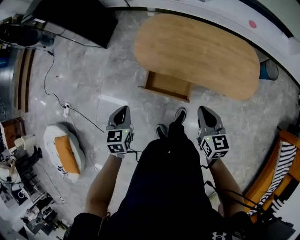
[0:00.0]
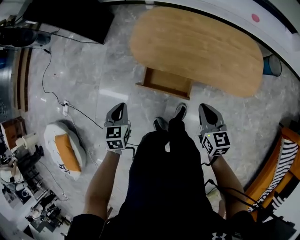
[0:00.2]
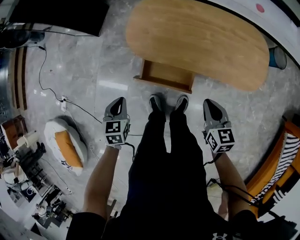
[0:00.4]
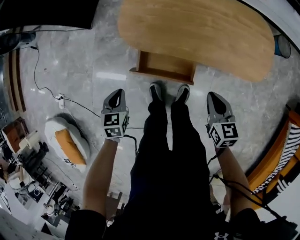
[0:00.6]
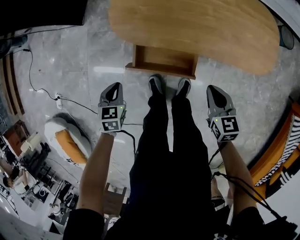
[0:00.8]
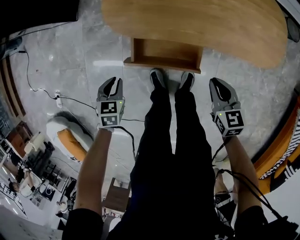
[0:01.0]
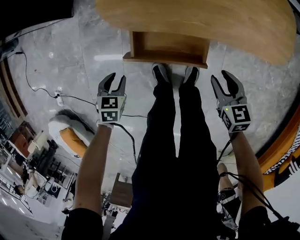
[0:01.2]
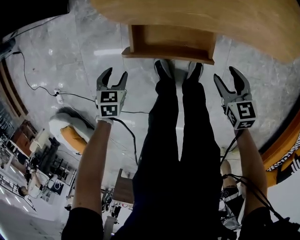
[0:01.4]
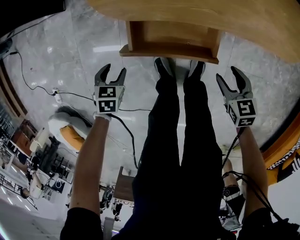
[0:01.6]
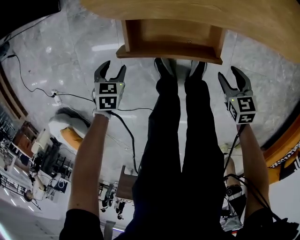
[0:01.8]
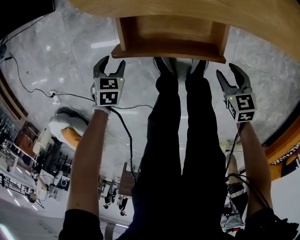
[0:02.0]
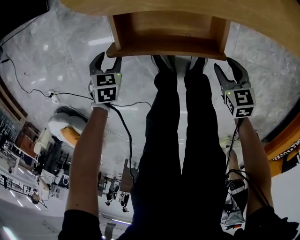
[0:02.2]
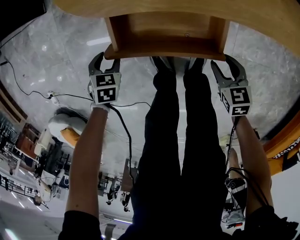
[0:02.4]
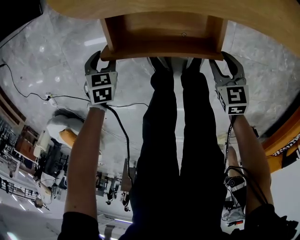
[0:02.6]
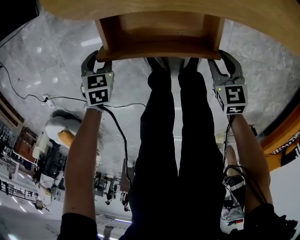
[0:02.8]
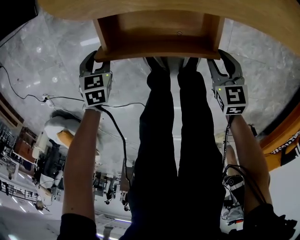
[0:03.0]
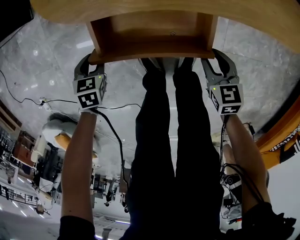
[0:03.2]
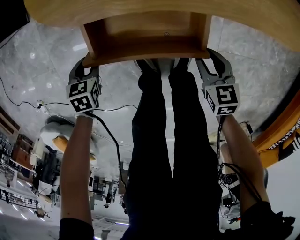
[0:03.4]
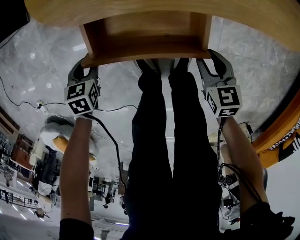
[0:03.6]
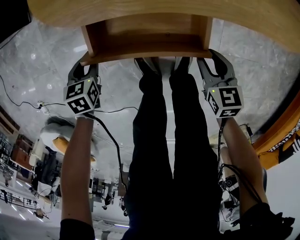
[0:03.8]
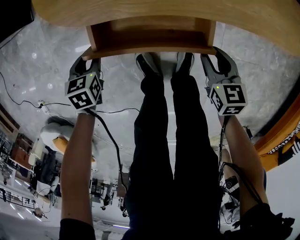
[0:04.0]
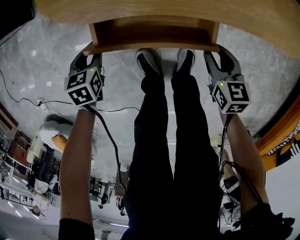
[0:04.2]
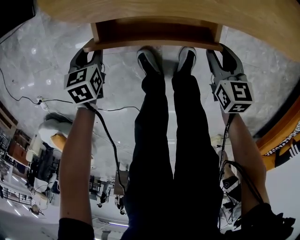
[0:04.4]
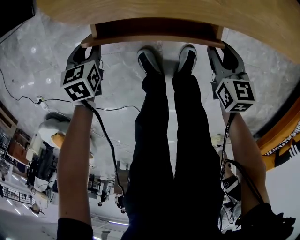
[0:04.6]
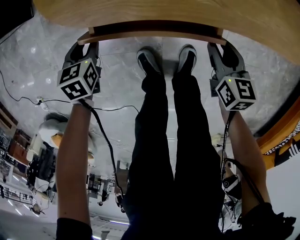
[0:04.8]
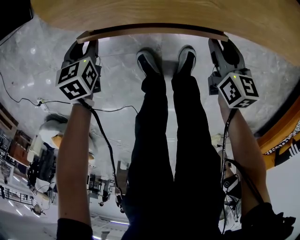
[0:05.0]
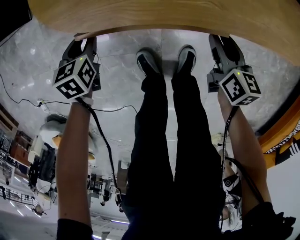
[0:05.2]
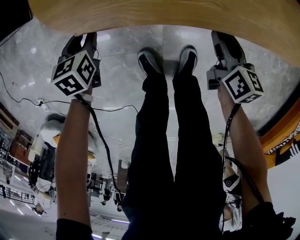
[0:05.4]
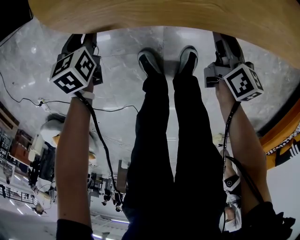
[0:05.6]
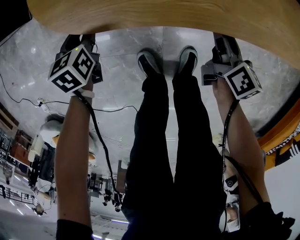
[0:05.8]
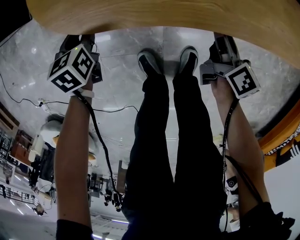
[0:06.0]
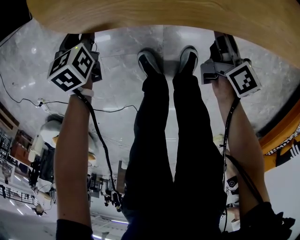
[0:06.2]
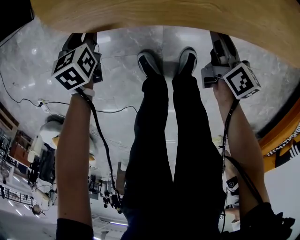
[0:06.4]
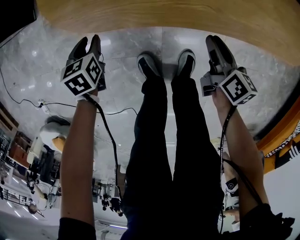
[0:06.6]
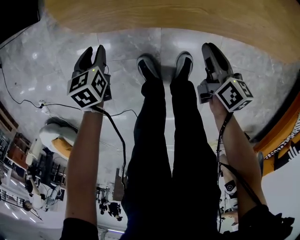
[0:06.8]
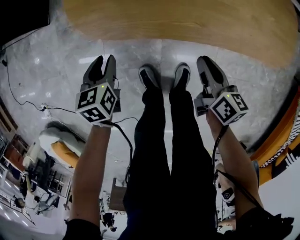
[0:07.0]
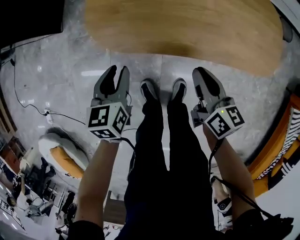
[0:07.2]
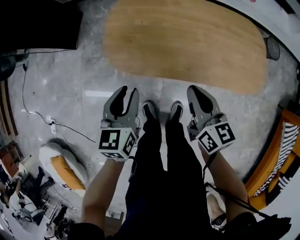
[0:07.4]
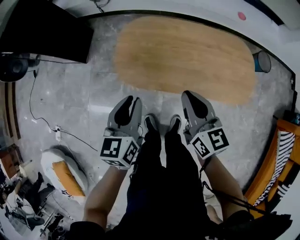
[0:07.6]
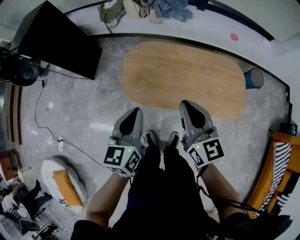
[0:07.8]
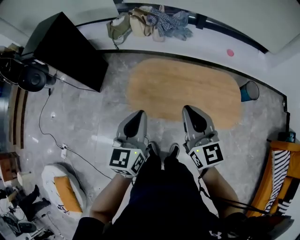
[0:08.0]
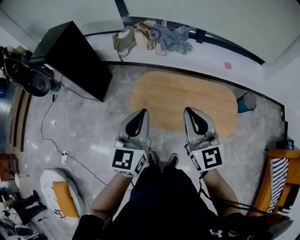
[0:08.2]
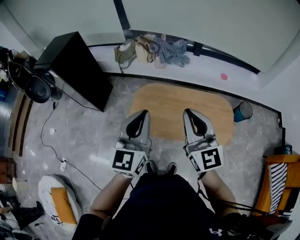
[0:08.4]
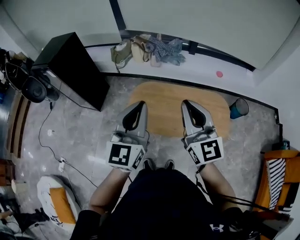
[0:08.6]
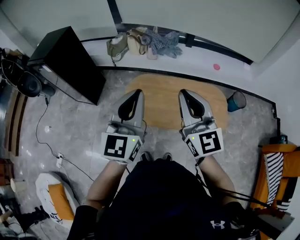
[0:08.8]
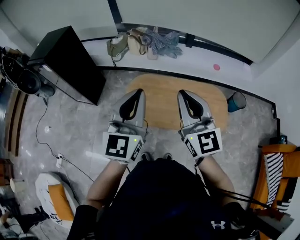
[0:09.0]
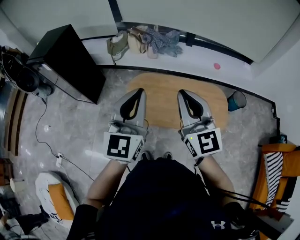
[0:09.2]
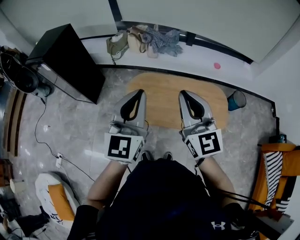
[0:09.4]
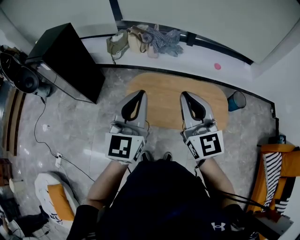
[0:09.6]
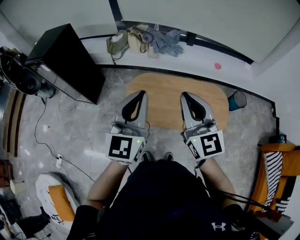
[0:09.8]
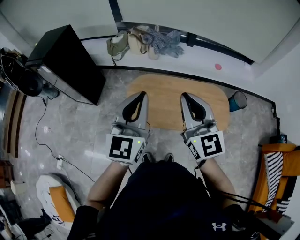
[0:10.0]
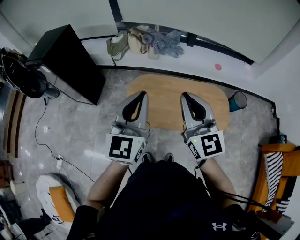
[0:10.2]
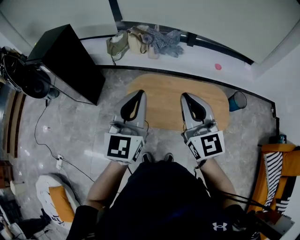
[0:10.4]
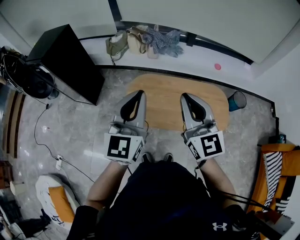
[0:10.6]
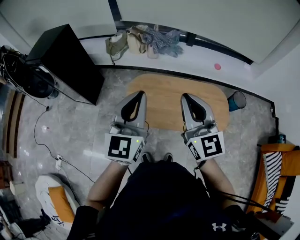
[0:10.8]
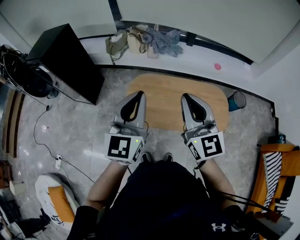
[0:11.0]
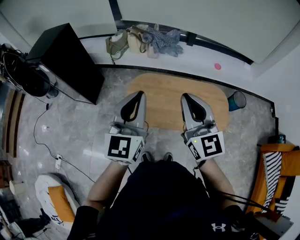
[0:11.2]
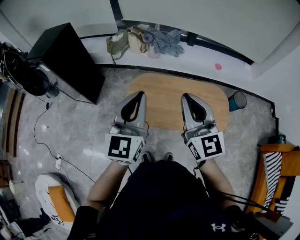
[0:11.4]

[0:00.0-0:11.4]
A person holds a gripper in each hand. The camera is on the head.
0:00.0 to 0:01.4: The grippers both shift downward by about 35 cm. The left gripper rotates some 40 degrees, and opens its fingers; the right gripper swivels approximately 20 degrees, and opens.
0:01.4 to 0:02.8: The grippers both shift downward by about 15 cm. The right gripper closes.
0:02.8 to 0:04.2: The right gripper shifts by about 5 cm.
0:04.2 to 0:05.6: The grippers both shift forward by approximately 10 cm. The right gripper changes its angle by approximately 40 degrees.
0:05.6 to 0:07.2: Both grippers travel together upward, roughly 25 cm. The right gripper closes.
0:07.2 to 0:08.6: Both grippers travel together upward, about 60 cm. The right gripper rotates around the line of its fingers by some 50 degrees, counterclockwise from behind; the left gripper points its fingers approximately 50 degrees further upward, and closes up.
0:08.6 to 0:11.4: The grippers make only small movements.

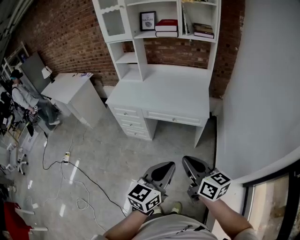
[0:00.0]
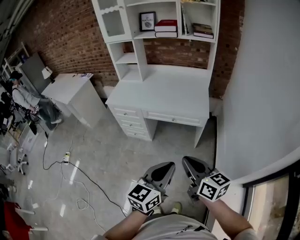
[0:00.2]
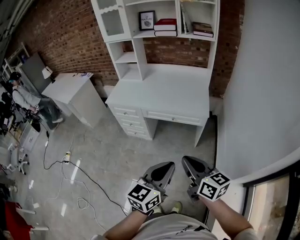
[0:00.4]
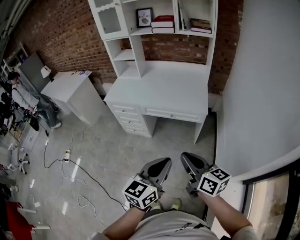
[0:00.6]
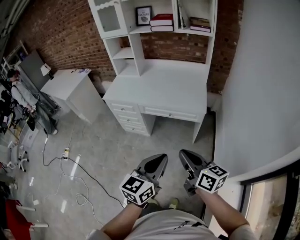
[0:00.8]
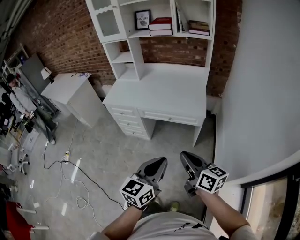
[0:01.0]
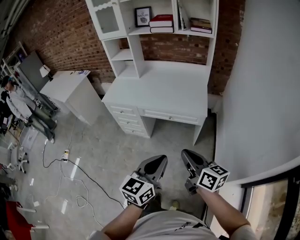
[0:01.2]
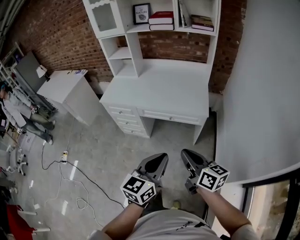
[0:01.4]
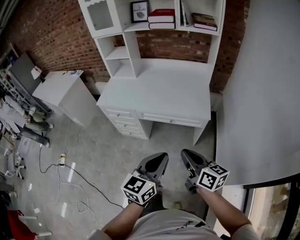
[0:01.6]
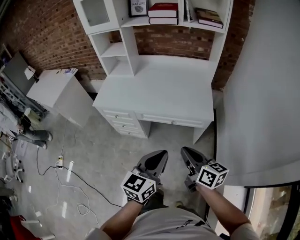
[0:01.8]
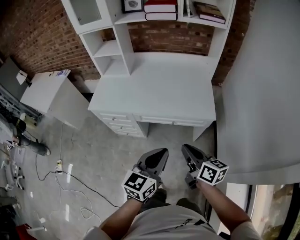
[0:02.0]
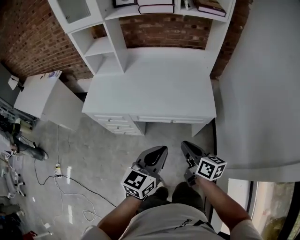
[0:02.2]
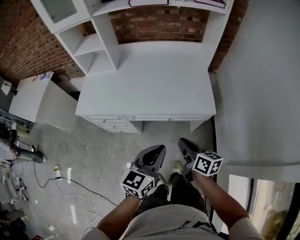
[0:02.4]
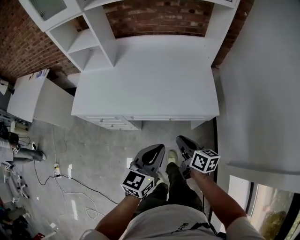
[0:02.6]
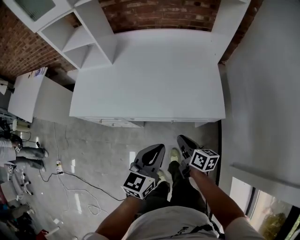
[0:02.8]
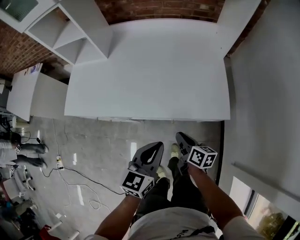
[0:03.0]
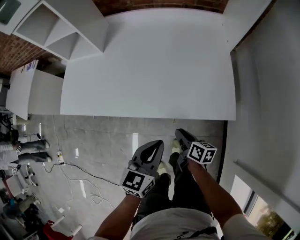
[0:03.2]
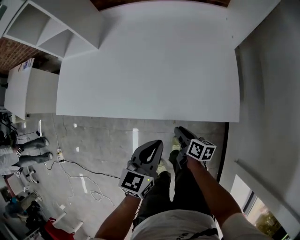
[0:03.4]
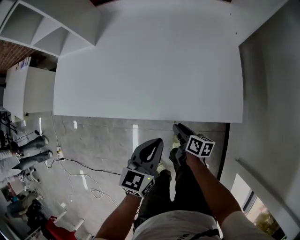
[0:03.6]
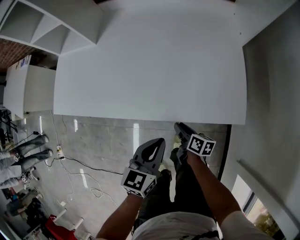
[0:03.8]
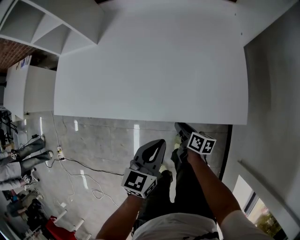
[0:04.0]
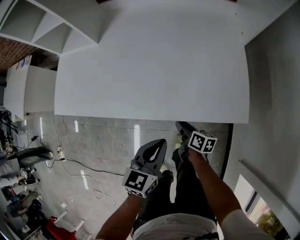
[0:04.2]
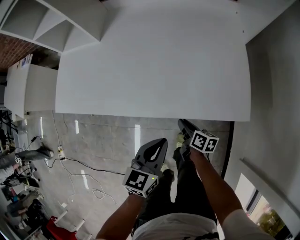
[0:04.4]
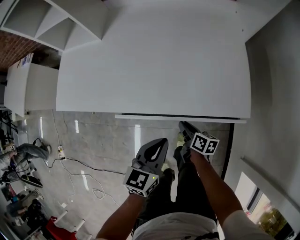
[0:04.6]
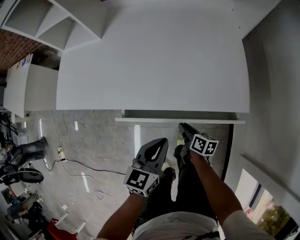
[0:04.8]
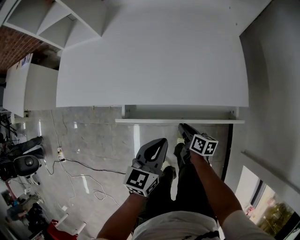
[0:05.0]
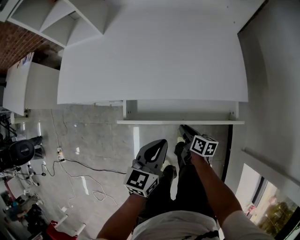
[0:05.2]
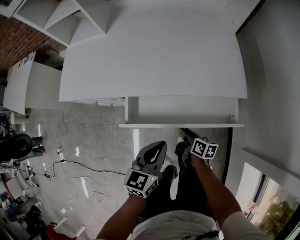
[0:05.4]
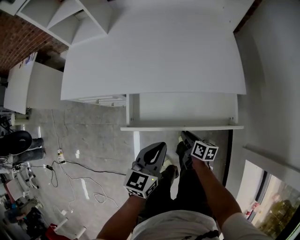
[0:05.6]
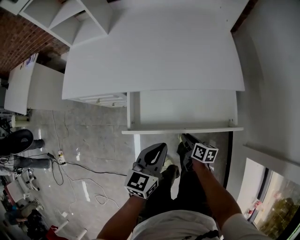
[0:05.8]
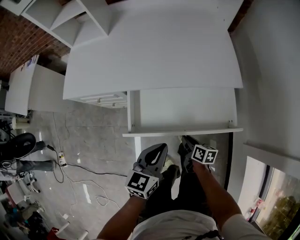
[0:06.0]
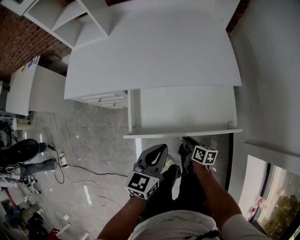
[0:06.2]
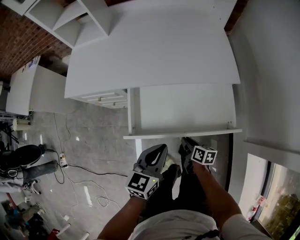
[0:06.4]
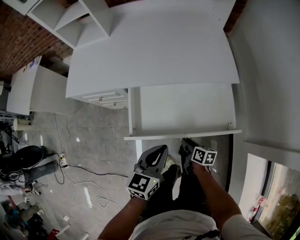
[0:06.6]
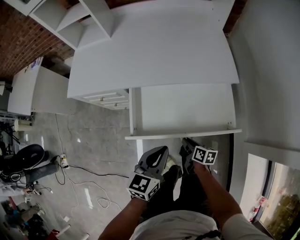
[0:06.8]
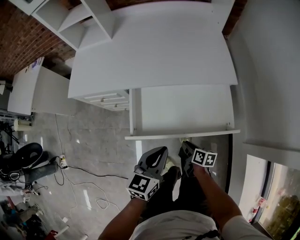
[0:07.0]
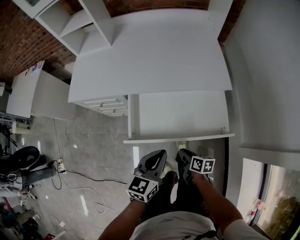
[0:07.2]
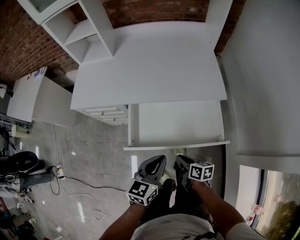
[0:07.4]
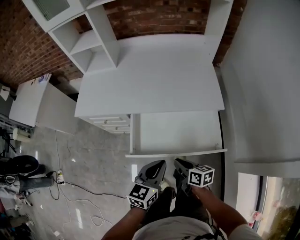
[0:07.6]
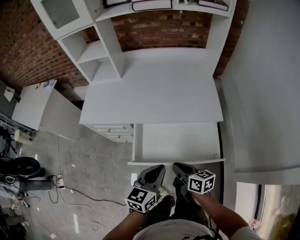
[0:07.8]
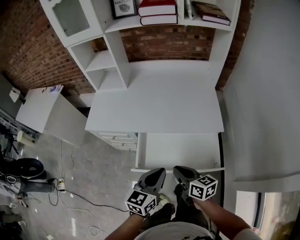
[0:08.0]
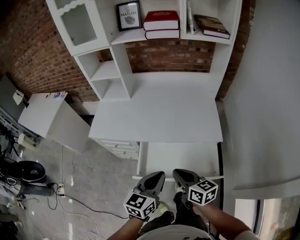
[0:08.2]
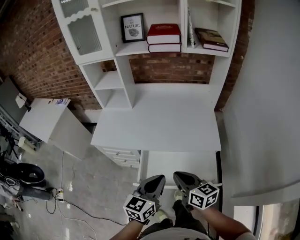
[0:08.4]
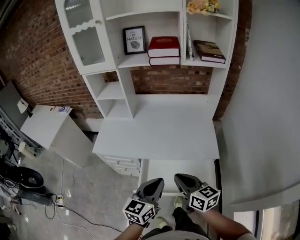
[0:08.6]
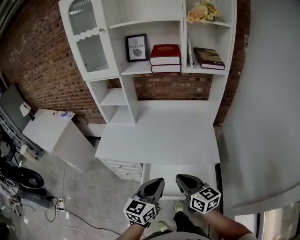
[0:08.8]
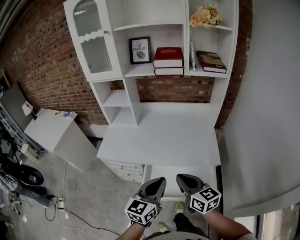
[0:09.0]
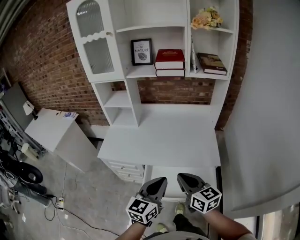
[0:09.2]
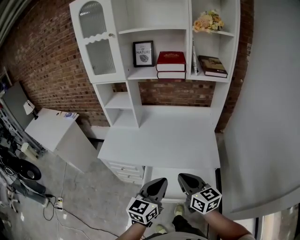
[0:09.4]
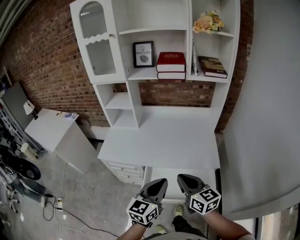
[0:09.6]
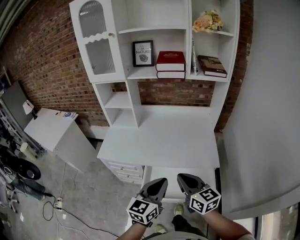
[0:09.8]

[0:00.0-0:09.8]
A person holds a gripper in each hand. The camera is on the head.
0:00.0 to 0:01.4: The grippers both shift forward by roughly 10 cm.
0:01.4 to 0:02.8: The grippers both shift forward and downward by approximately 35 cm. The right gripper swivels about 30 degrees.
0:02.8 to 0:04.2: Both grippers travel together downward and forward, about 20 cm.
0:04.2 to 0:05.6: The two grippers go approximately 15 cm backward.
0:05.6 to 0:07.0: The two grippers go about 10 cm backward.
0:07.0 to 0:08.4: The left gripper shifts about 20 cm upward, while the right gripper goes about 40 cm upward, and rotates approximately 50 degrees.
0:08.4 to 0:09.8: Both grippers travel together upward, roughly 10 cm.

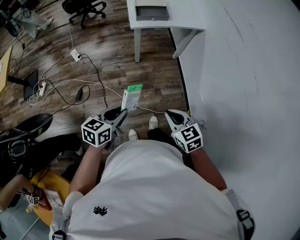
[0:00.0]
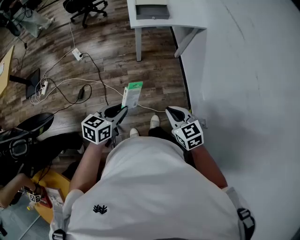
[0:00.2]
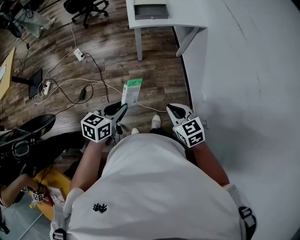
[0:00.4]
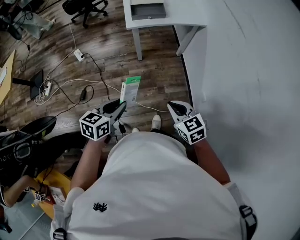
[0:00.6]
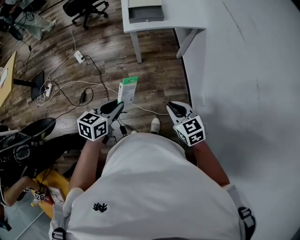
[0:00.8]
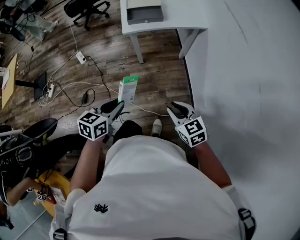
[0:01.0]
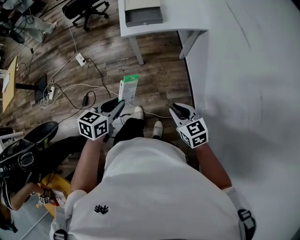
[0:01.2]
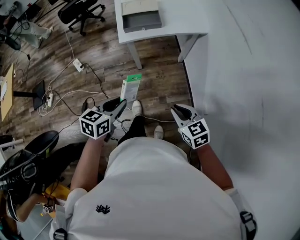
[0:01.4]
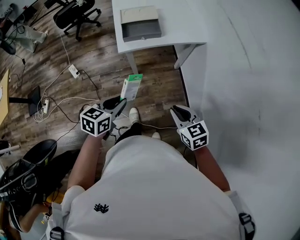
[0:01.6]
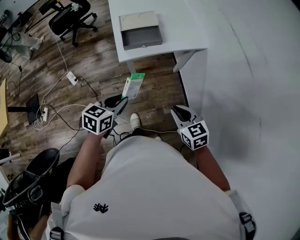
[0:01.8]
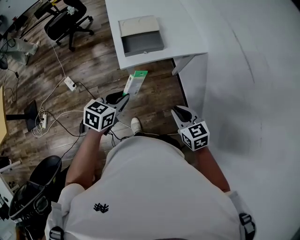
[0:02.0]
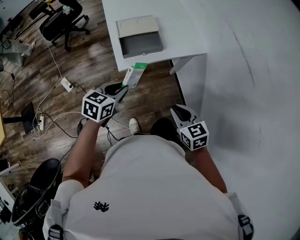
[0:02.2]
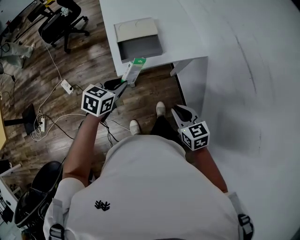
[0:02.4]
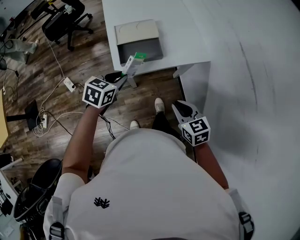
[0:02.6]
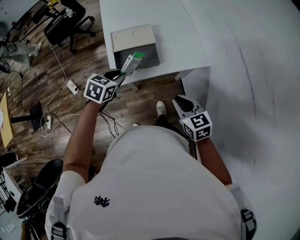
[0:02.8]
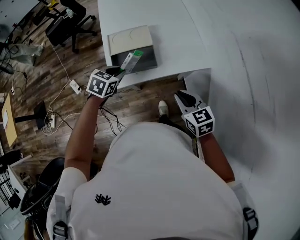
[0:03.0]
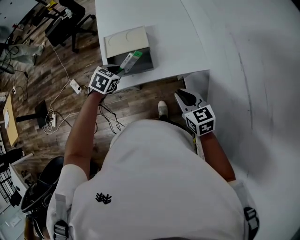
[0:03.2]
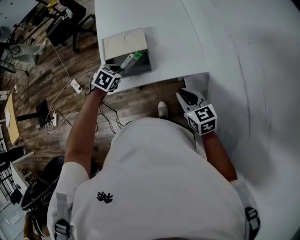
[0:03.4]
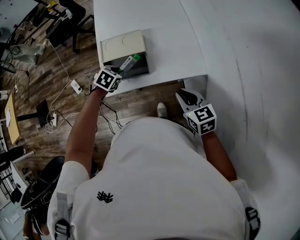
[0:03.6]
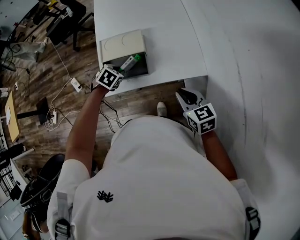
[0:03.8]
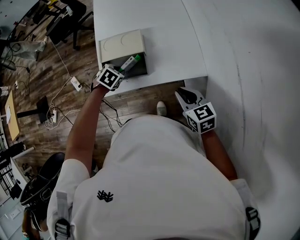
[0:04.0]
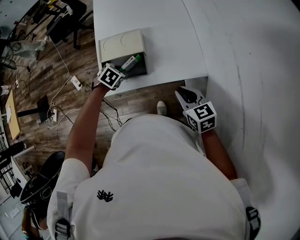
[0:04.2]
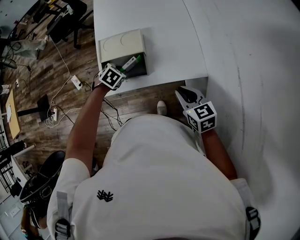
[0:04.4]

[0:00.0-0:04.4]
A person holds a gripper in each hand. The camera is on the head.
0:00.0 to 0:01.4: The left gripper travels forward by roughly 20 cm. Meanwhile the right gripper moves forward and to the right, about 20 cm.
0:01.4 to 0:03.0: Both grippers travel together forward, about 40 cm. The left gripper swivels approximately 30 degrees.
0:03.0 to 0:04.4: The left gripper moves downward and forward, approximately 10 cm, and turns by about 20 degrees. Meanwhile the right gripper travels to the right and forward by roughly 10 cm.